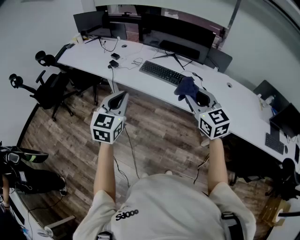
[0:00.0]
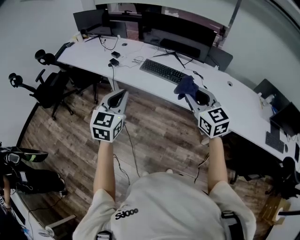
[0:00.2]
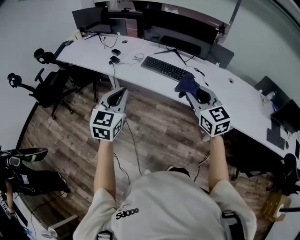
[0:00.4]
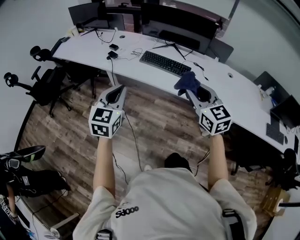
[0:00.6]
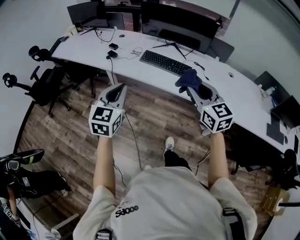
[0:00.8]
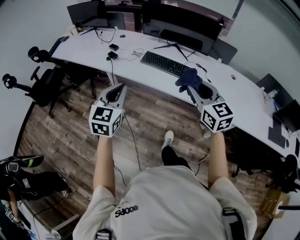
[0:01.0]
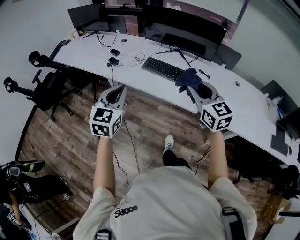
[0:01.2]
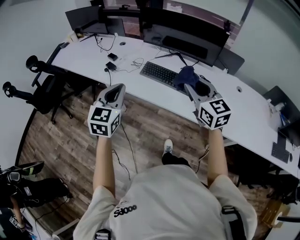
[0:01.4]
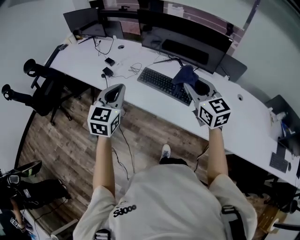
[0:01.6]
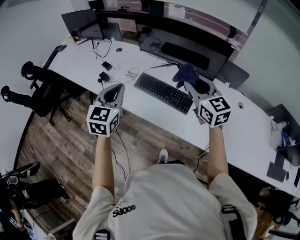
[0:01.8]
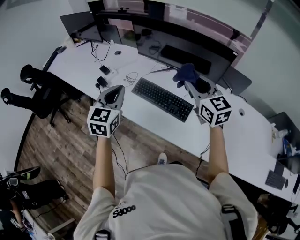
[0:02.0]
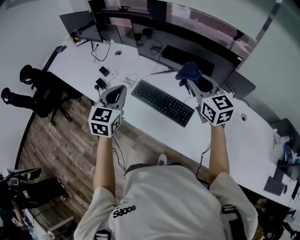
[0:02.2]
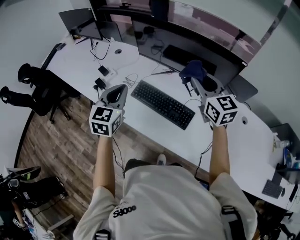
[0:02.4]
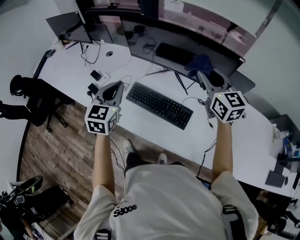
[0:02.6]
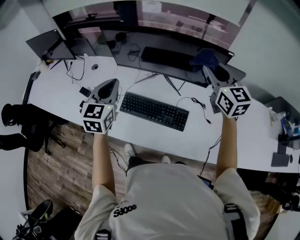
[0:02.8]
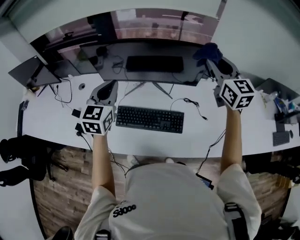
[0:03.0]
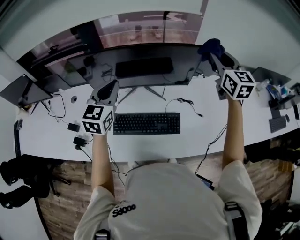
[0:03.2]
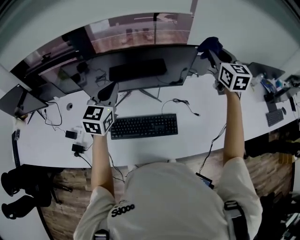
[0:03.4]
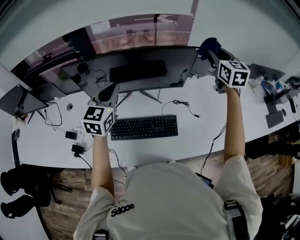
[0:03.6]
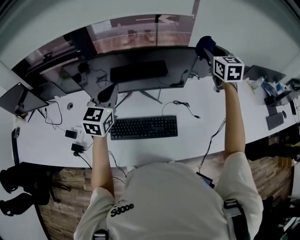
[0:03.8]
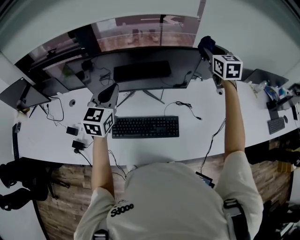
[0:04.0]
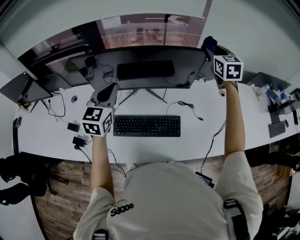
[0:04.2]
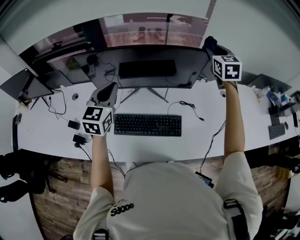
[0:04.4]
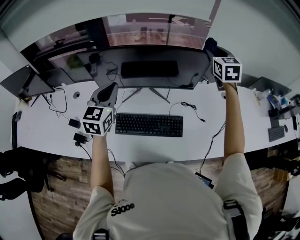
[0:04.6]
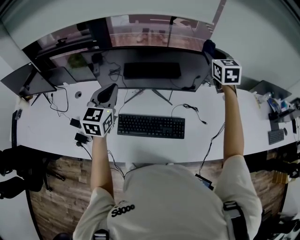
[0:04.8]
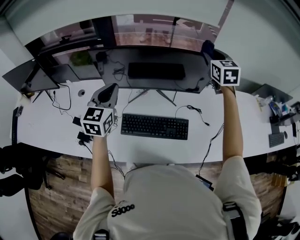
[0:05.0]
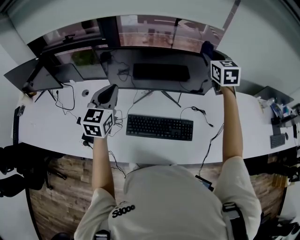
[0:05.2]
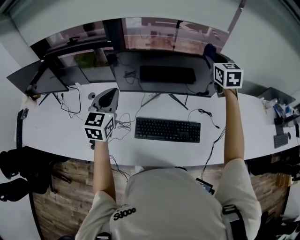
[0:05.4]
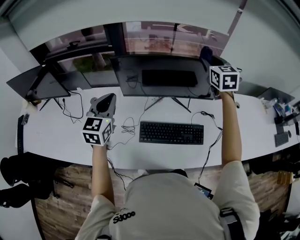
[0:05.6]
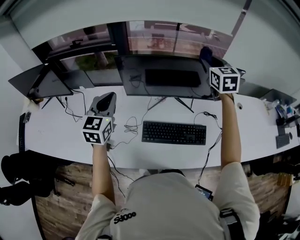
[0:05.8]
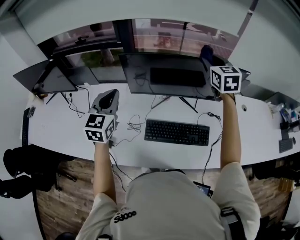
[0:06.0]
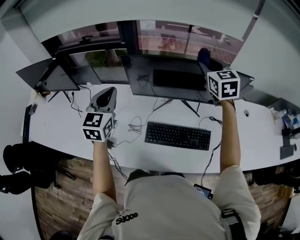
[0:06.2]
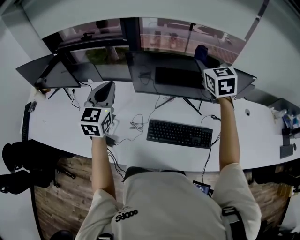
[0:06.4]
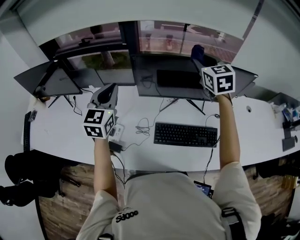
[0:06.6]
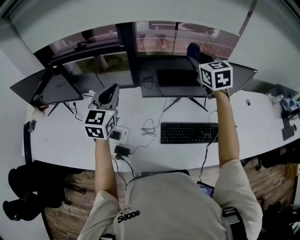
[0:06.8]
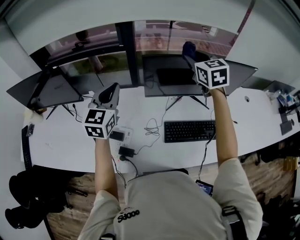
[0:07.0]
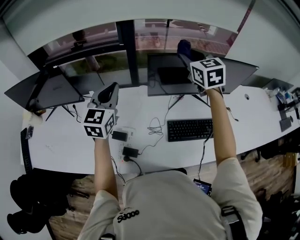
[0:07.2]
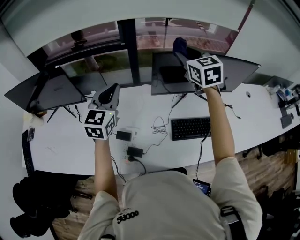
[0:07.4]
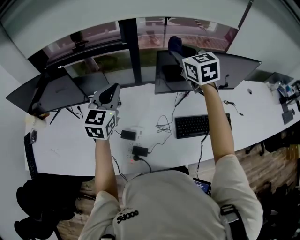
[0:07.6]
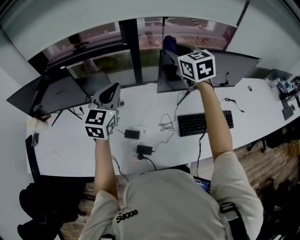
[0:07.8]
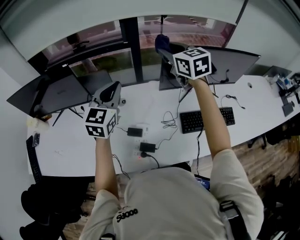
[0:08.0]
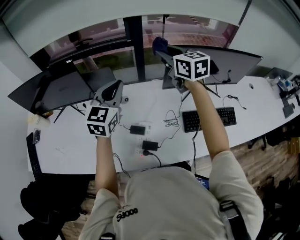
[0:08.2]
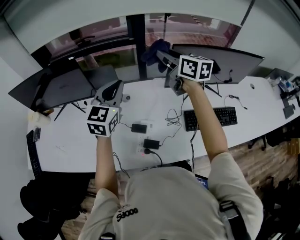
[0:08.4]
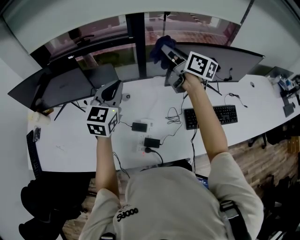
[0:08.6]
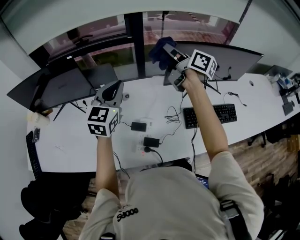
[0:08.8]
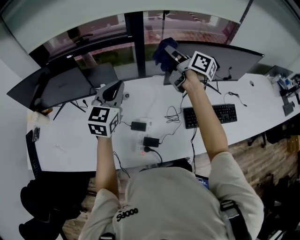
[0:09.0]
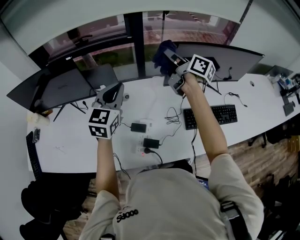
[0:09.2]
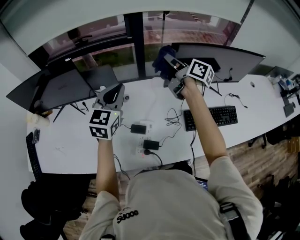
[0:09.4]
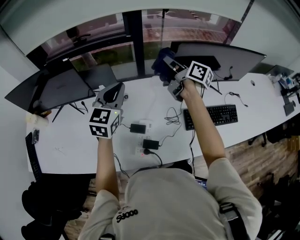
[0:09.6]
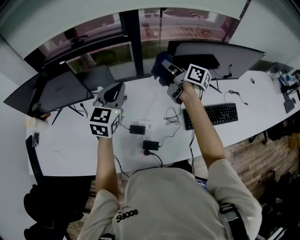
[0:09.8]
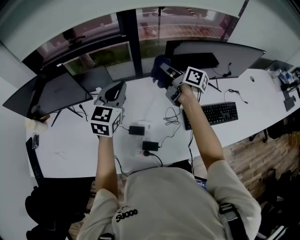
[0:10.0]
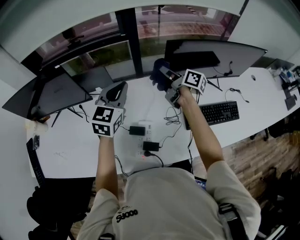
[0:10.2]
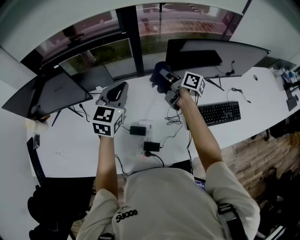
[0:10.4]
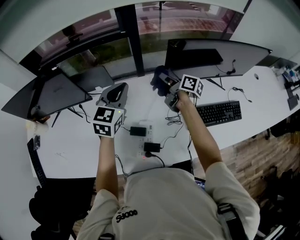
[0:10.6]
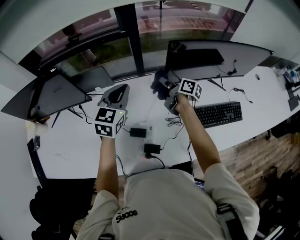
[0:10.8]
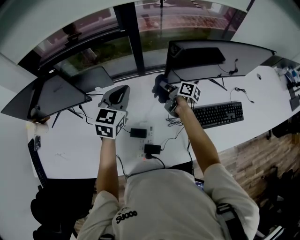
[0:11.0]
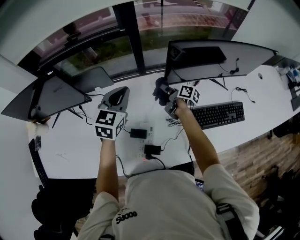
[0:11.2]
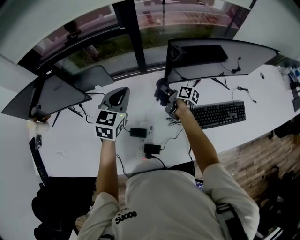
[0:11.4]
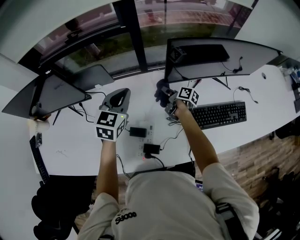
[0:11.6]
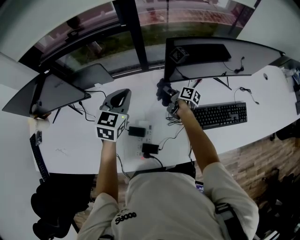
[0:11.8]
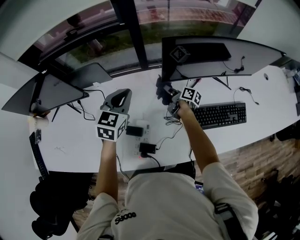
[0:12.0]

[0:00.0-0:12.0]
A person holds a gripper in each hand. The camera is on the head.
0:00.0 to 0:01.6: Both grippers move forward, roughly 25 cm.
0:01.6 to 0:03.0: The left gripper ends up about 35 cm from where it was, and rotates some 20 degrees; the right gripper changes place by some 35 cm, and turns by approximately 30 degrees.
0:03.0 to 0:04.4: The right gripper shifts roughly 10 cm forward, and rotates roughly 20 degrees.
0:04.4 to 0:06.0: The two grippers go roughly 20 cm to the left.
0:06.0 to 0:07.6: The right gripper travels to the left by approximately 30 cm; the left gripper goes approximately 20 cm to the left.
0:07.6 to 0:09.0: Both grippers move to the left, roughly 5 cm. The right gripper rotates around the line of its fingers by some 60 degrees, clockwise from behind.
0:09.0 to 0:10.4: The right gripper travels downward by about 15 cm, while the left gripper goes about 5 cm forward.
0:10.4 to 0:12.0: The right gripper is displaced downward by some 20 cm. Meanwhile the left gripper moves downward, roughly 5 cm.

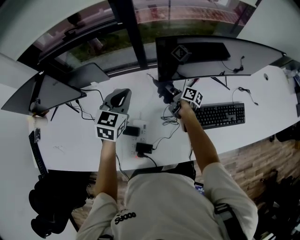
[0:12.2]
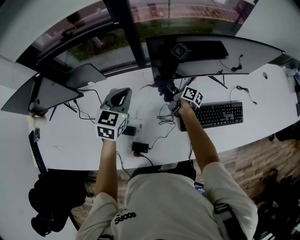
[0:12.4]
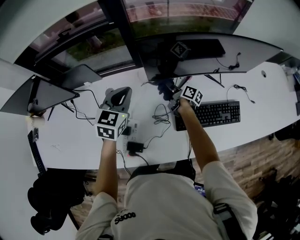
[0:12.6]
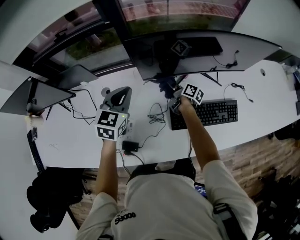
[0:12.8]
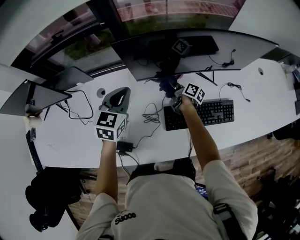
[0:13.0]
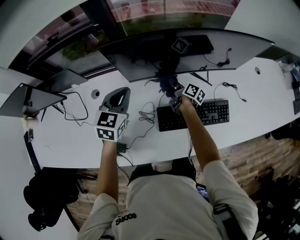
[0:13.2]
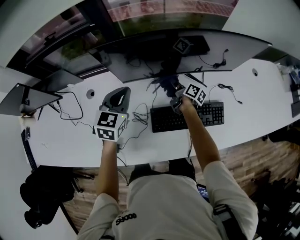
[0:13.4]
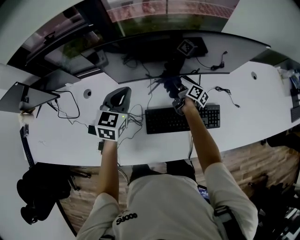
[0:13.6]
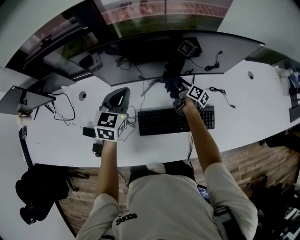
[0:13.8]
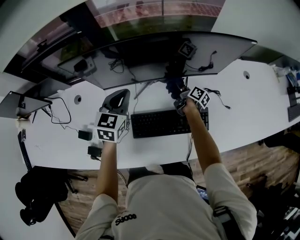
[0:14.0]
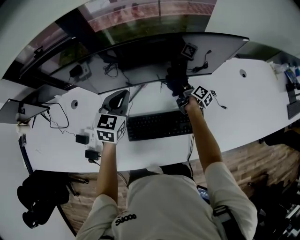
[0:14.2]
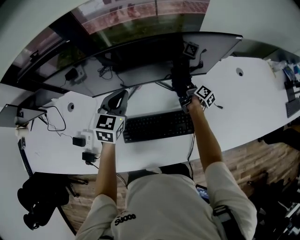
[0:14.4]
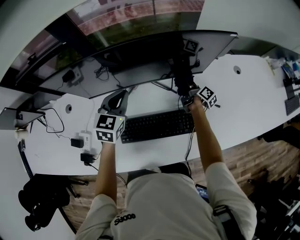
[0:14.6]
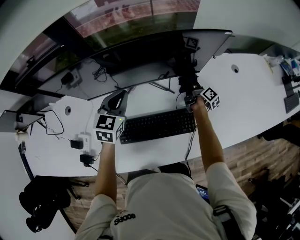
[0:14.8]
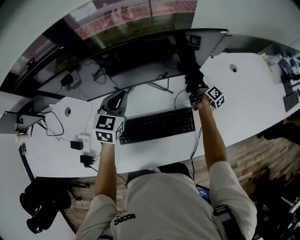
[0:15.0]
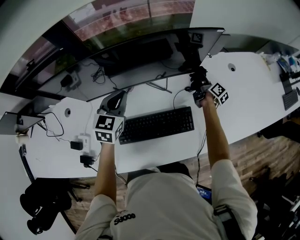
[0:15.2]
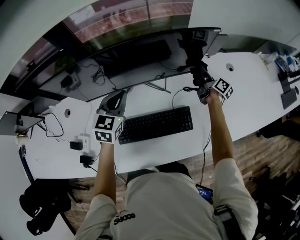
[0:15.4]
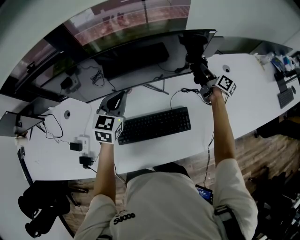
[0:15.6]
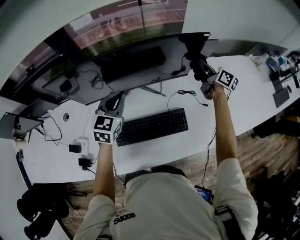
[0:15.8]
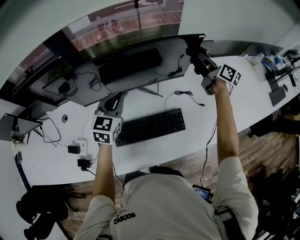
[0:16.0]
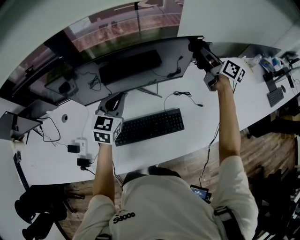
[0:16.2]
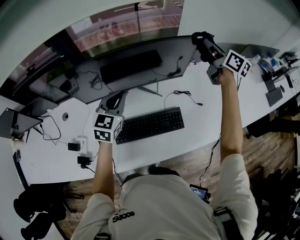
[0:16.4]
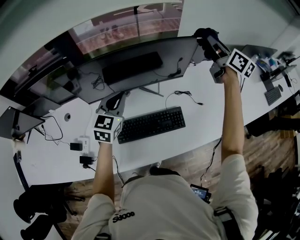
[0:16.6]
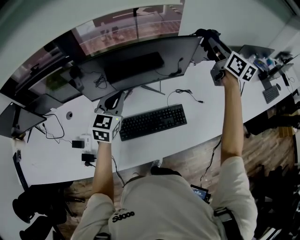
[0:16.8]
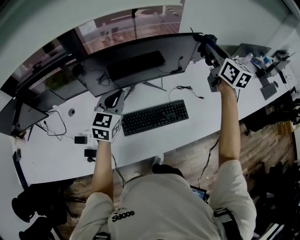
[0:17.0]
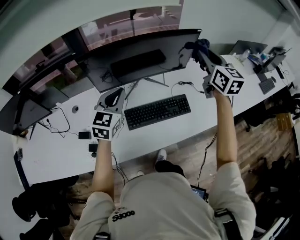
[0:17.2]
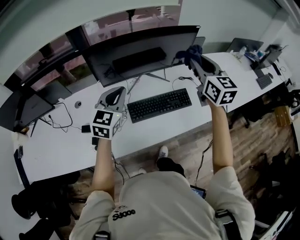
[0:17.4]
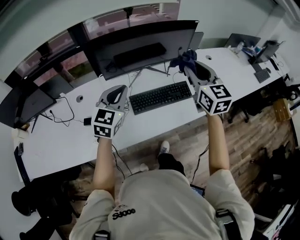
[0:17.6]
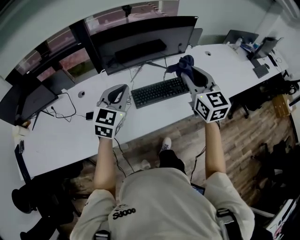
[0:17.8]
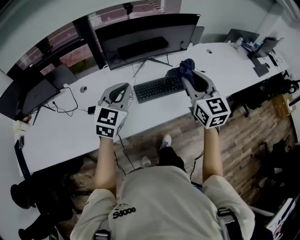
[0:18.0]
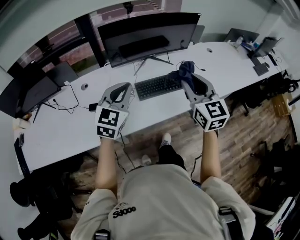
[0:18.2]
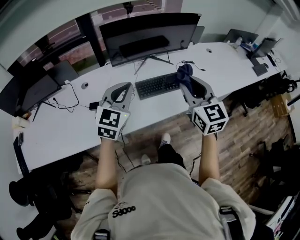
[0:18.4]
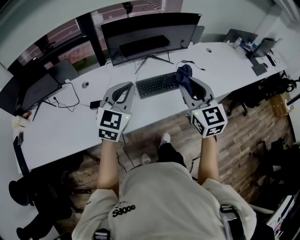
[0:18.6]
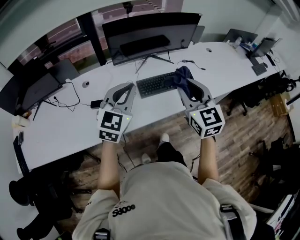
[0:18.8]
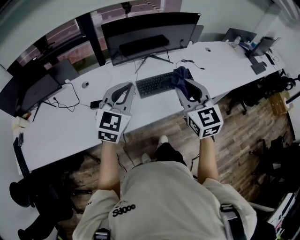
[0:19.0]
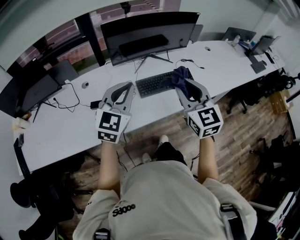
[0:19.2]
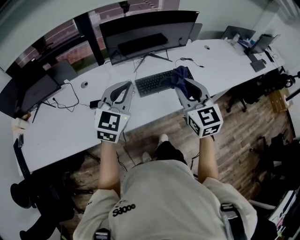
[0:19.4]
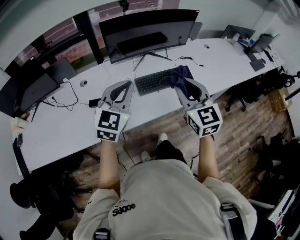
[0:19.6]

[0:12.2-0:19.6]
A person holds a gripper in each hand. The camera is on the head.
0:12.2 to 0:13.6: The grippers both shift to the right by roughly 25 cm.
0:13.6 to 0:15.2: The left gripper moves to the right, approximately 20 cm; the right gripper goes about 35 cm to the right, and turns by approximately 20 degrees.
0:15.2 to 0:16.6: The right gripper travels upward by about 40 cm, and turns by about 40 degrees, while the left gripper goes some 10 cm upward and backward.
0:16.6 to 0:18.2: The right gripper is displaced backward and to the left by approximately 60 cm, and rotates about 40 degrees. Meanwhile the left gripper shifts roughly 35 cm backward.
0:18.2 to 0:19.6: The right gripper ends up roughly 5 cm from where it was.

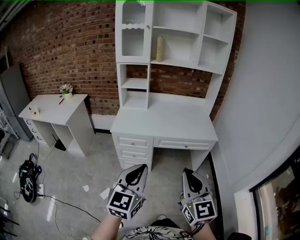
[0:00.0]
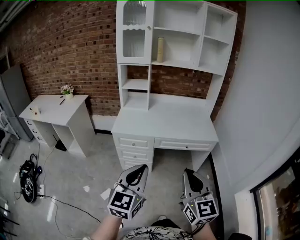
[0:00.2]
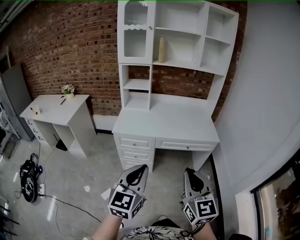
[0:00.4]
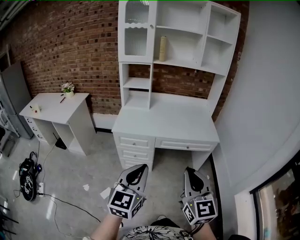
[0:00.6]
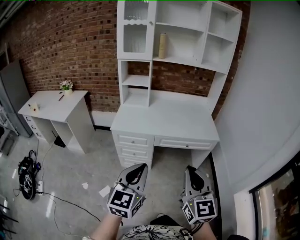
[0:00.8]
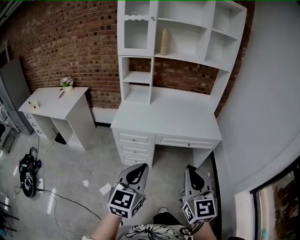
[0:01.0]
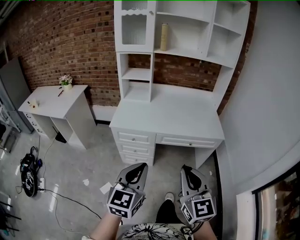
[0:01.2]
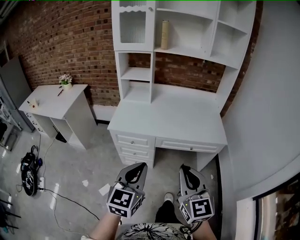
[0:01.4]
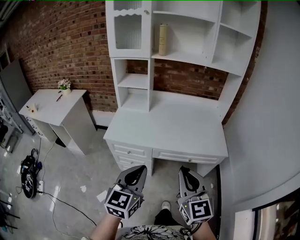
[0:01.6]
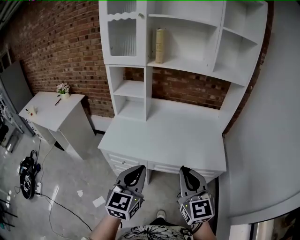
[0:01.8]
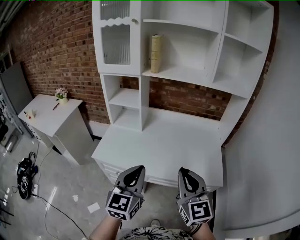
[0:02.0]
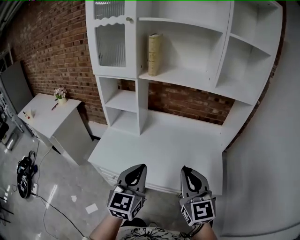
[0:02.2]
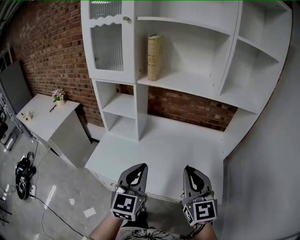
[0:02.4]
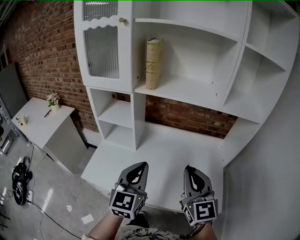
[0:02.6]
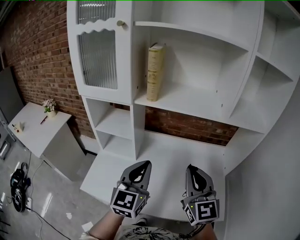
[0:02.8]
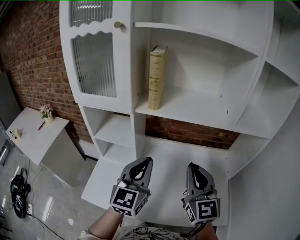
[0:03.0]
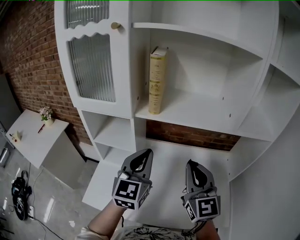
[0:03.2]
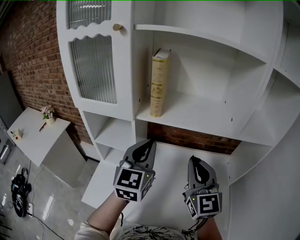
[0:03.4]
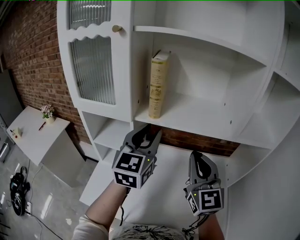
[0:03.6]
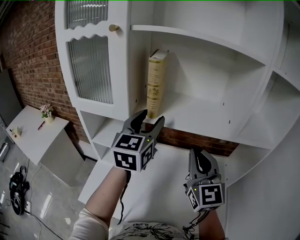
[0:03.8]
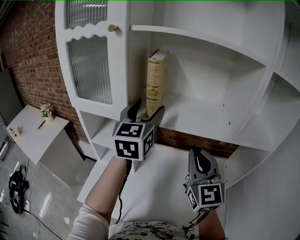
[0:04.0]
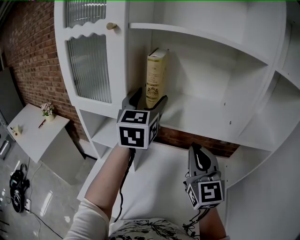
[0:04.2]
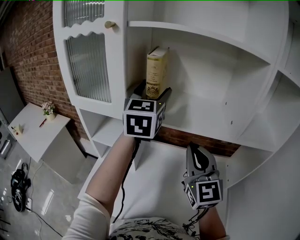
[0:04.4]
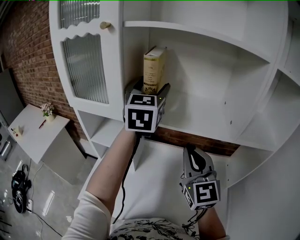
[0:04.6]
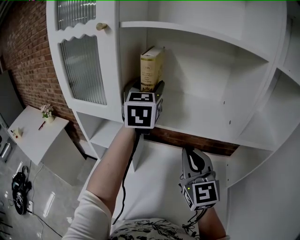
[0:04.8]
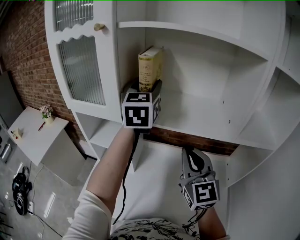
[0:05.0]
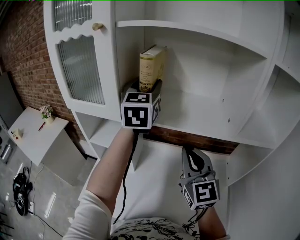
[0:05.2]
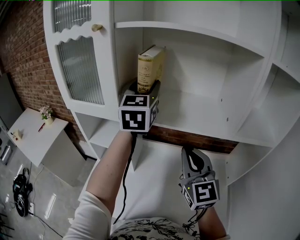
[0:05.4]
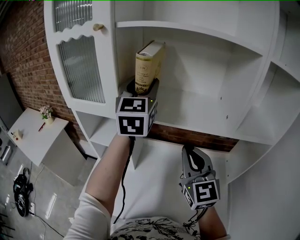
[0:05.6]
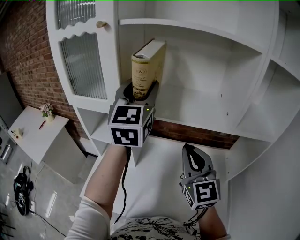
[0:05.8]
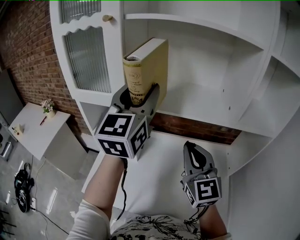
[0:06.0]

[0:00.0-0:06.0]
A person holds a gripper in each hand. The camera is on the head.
0:00.0 to 0:01.6: Both grippers move forward, roughly 20 cm.
0:01.6 to 0:03.0: Both grippers are carried forward, about 50 cm.
0:03.0 to 0:04.4: The right gripper is displaced forward and upward by roughly 10 cm. The left gripper shifts approximately 30 cm forward and upward, and opens up.
0:04.4 to 0:06.0: The left gripper travels backward by approximately 10 cm, and closes.
